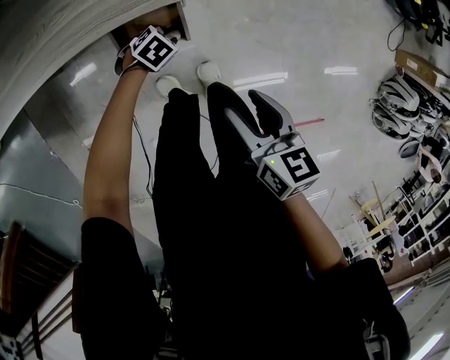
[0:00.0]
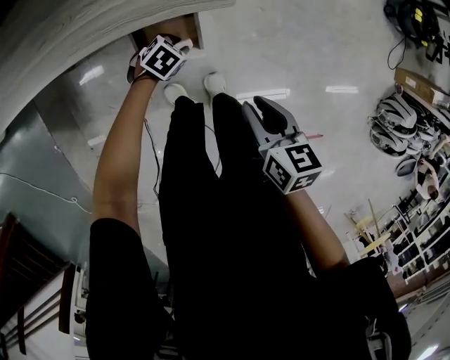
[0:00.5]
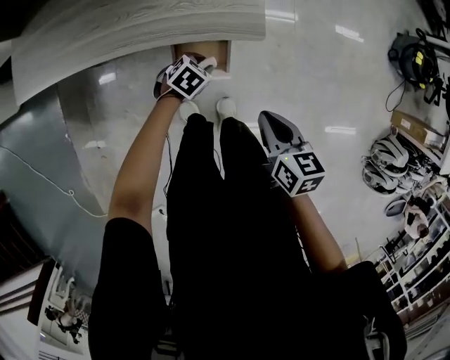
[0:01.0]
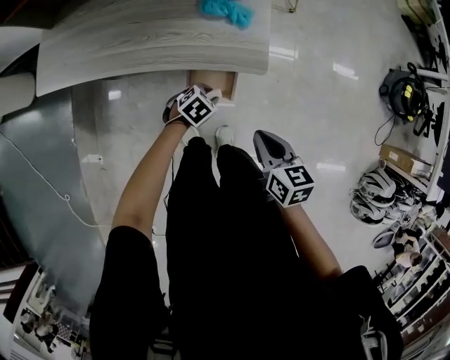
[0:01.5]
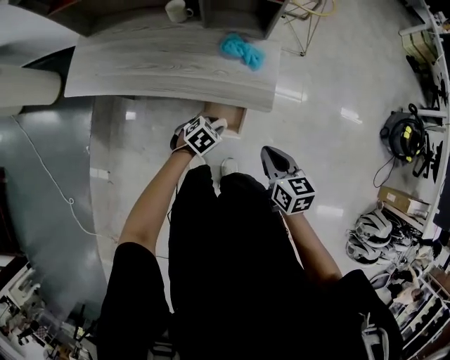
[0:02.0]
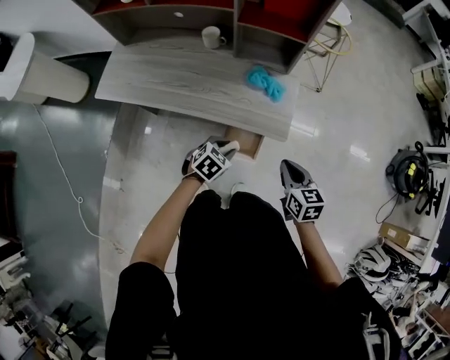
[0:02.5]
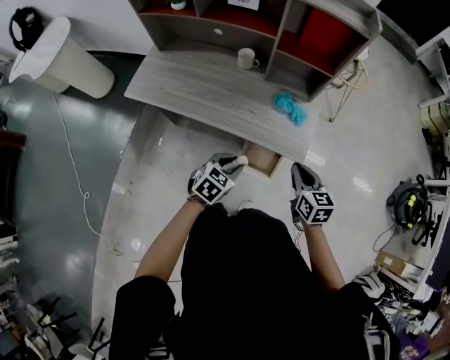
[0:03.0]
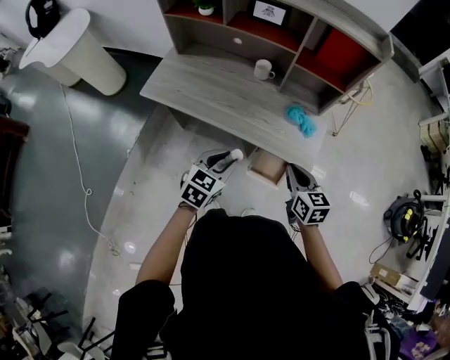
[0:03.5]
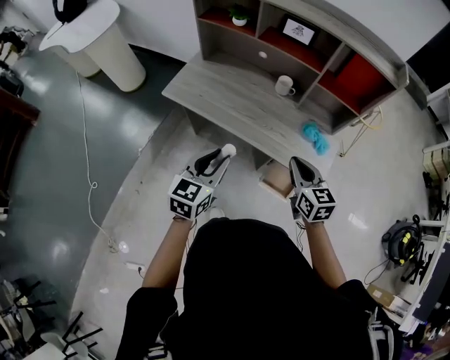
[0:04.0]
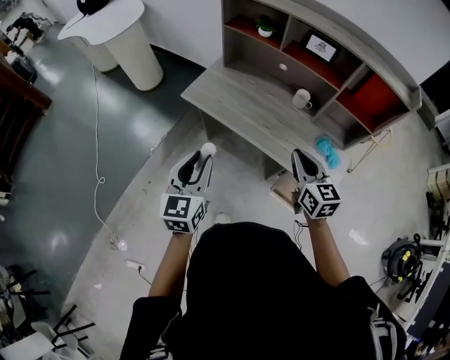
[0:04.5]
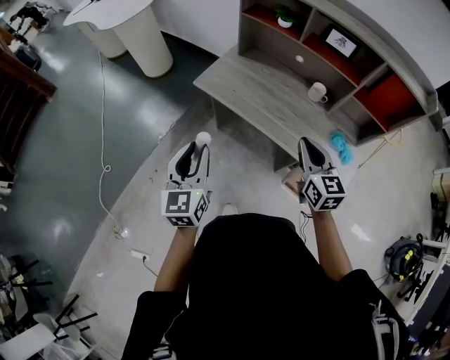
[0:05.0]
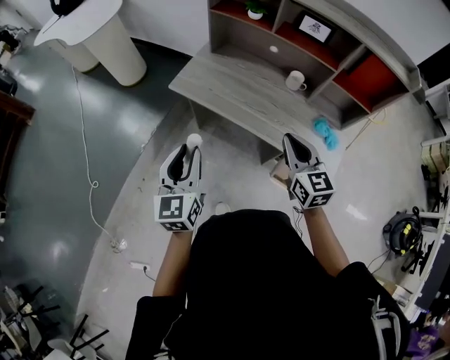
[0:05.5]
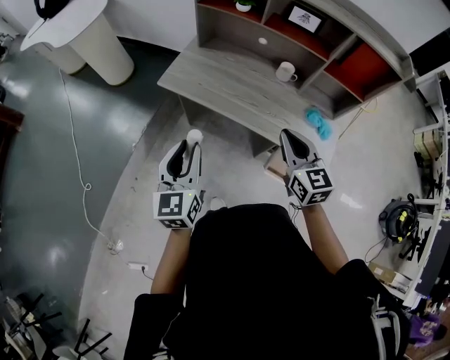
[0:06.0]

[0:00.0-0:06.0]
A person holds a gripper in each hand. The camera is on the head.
0:00.0 to 0:02.0: The right gripper goes roughly 15 cm upward, swivels roughly 20 degrees, and closes. The left gripper goes approximately 25 cm upward, and rotates roughly 20 degrees.
0:02.0 to 0:04.0: The left gripper goes some 35 cm upward, and tips its fingers upward by roughly 40 degrees. Meanwhile the right gripper changes place by approximately 30 cm, and rotates some 30 degrees.
0:04.0 to 0:06.0: The two grippers go approximately 15 cm to the left. The left gripper changes its angle by some 20 degrees.

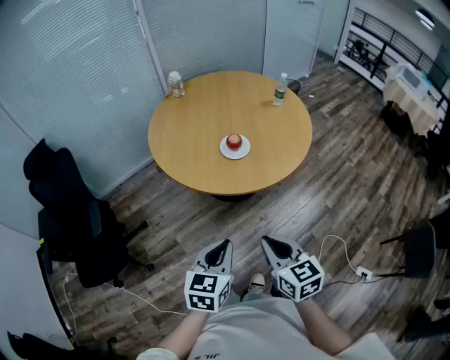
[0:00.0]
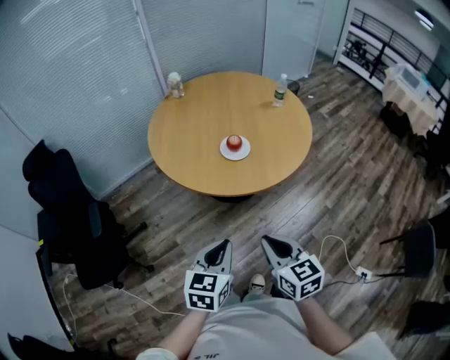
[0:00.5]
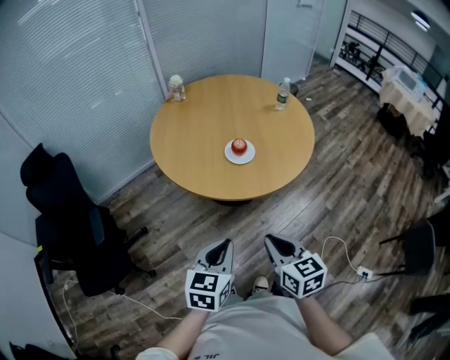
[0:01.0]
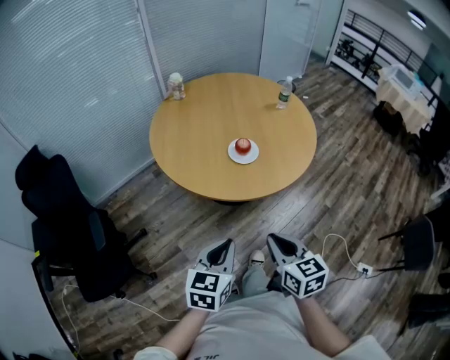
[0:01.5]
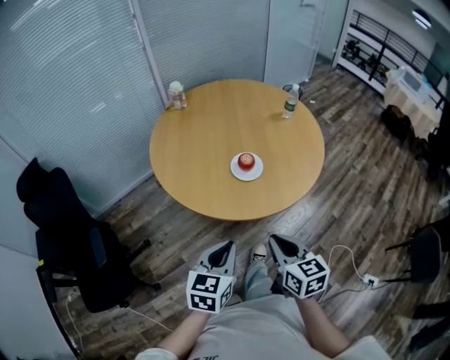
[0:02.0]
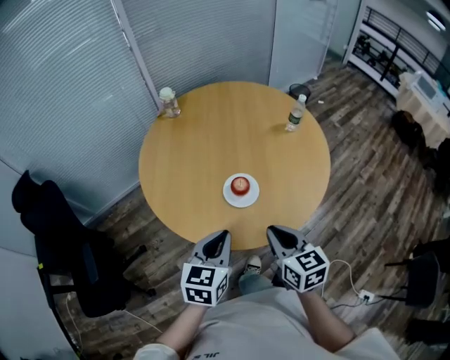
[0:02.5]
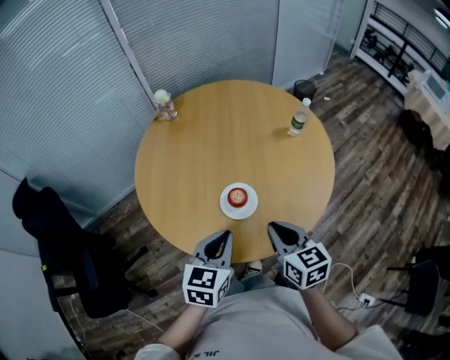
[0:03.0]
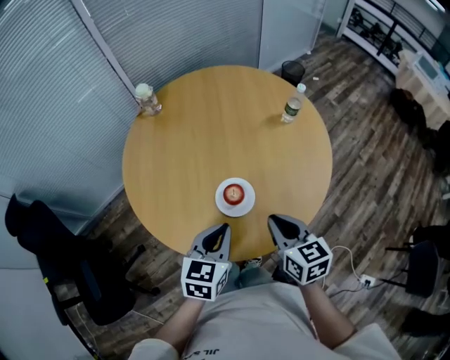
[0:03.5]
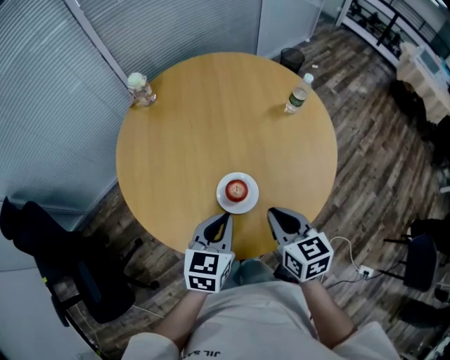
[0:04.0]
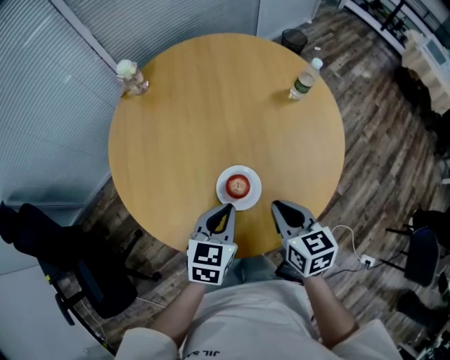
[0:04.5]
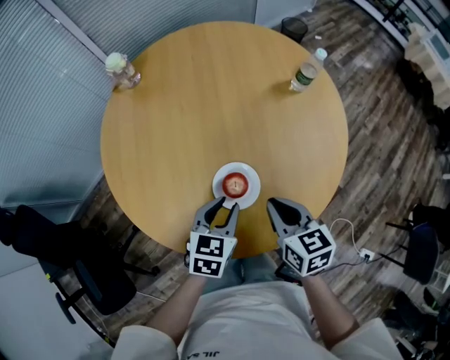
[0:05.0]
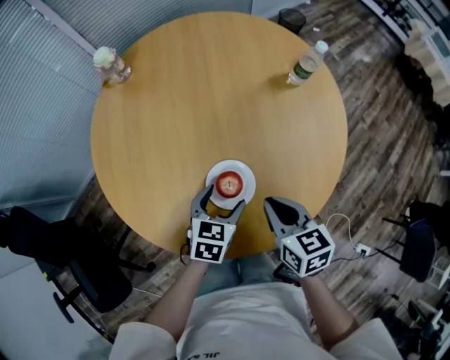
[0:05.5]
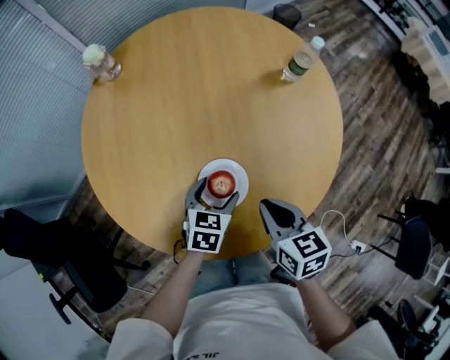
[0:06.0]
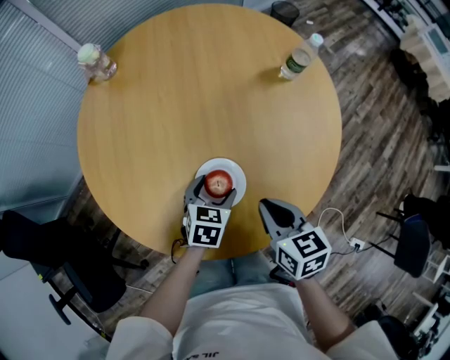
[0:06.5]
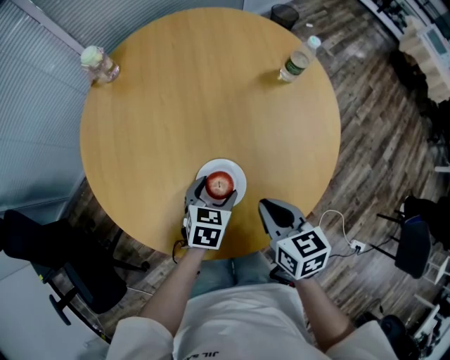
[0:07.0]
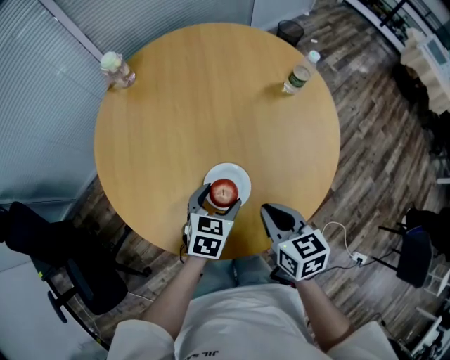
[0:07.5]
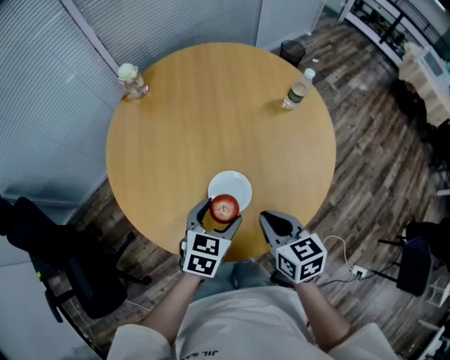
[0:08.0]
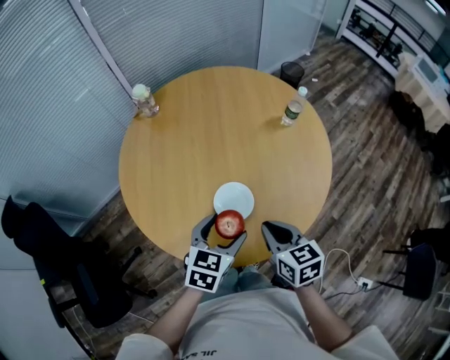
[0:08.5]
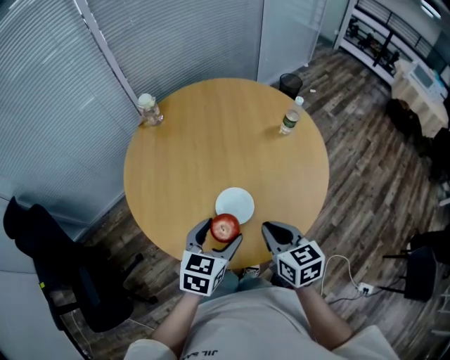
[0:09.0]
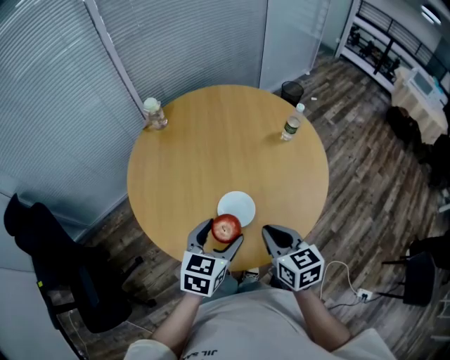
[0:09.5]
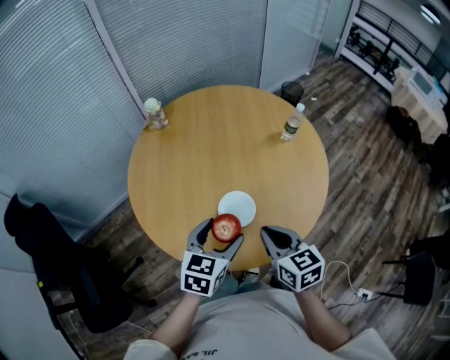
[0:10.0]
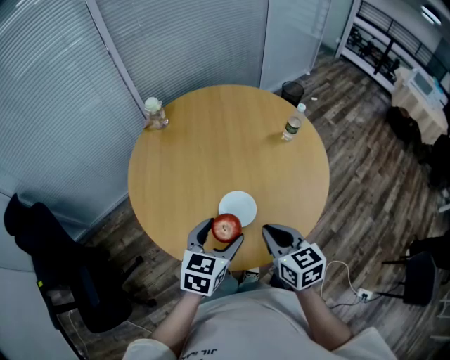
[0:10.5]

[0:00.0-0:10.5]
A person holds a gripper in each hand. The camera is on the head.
0:00.0 to 0:02.0: The right gripper shifts approximately 10 cm forward. The left gripper travels forward and to the left by about 10 cm.
0:02.0 to 0:04.0: The grippers both shift forward by approximately 30 cm.
0:04.0 to 0:06.5: The left gripper shifts approximately 20 cm downward and forward, changes its angle by roughly 20 degrees, and opens up, while the right gripper heads downward, covering some 10 cm.
0:06.5 to 0:08.5: The right gripper is displaced upward and backward by about 10 cm. Meanwhile the left gripper shifts roughly 20 cm upward and backward.
0:08.5 to 0:10.5: The left gripper moves some 5 cm; the right gripper changes place by some 5 cm.

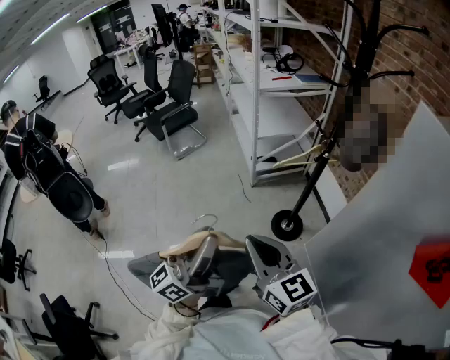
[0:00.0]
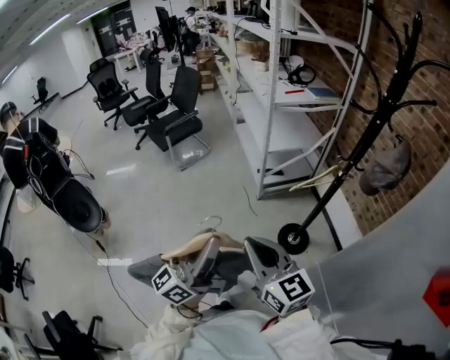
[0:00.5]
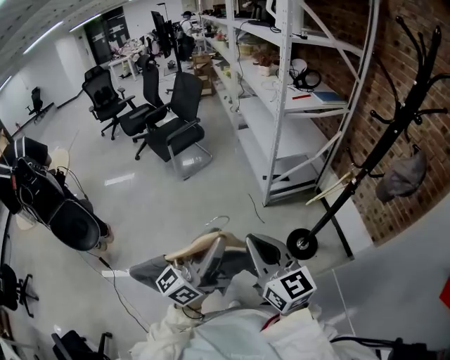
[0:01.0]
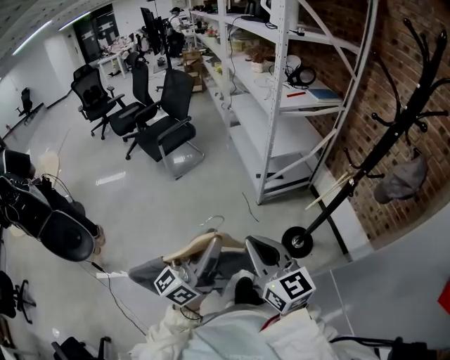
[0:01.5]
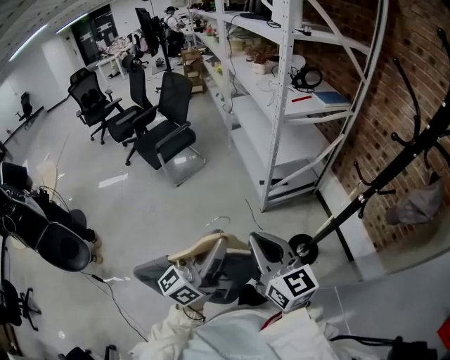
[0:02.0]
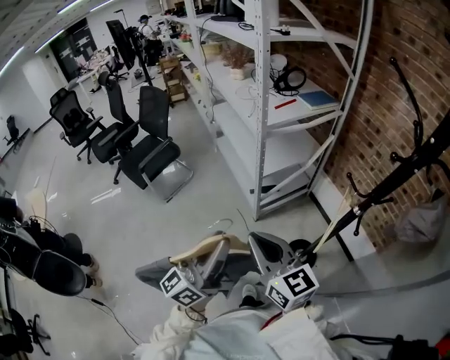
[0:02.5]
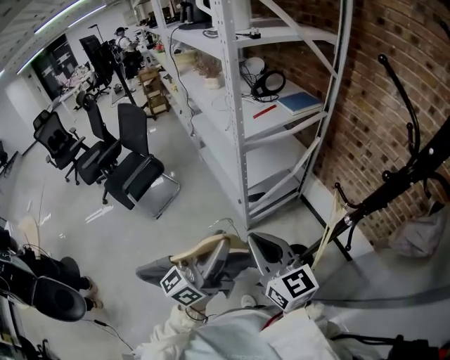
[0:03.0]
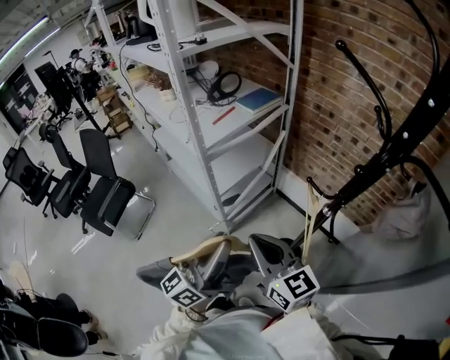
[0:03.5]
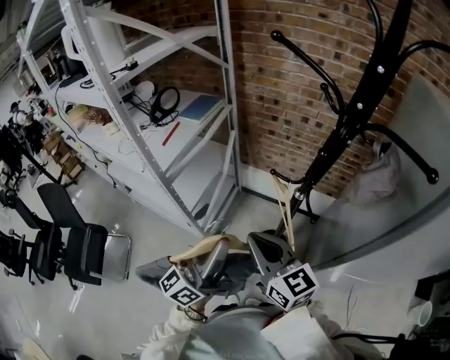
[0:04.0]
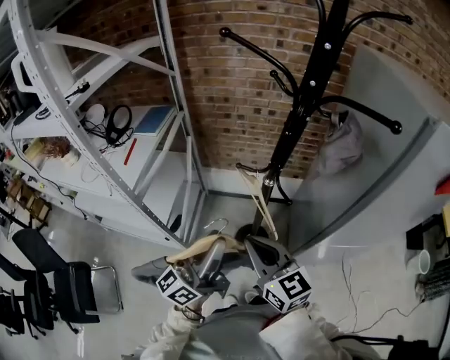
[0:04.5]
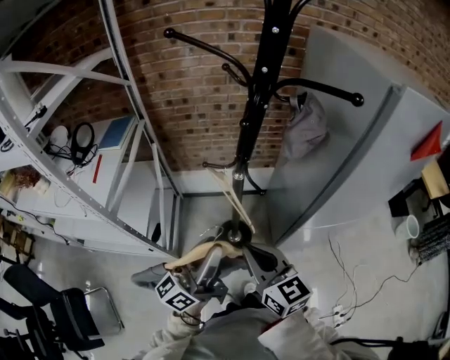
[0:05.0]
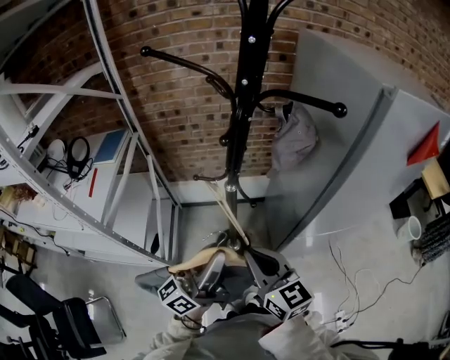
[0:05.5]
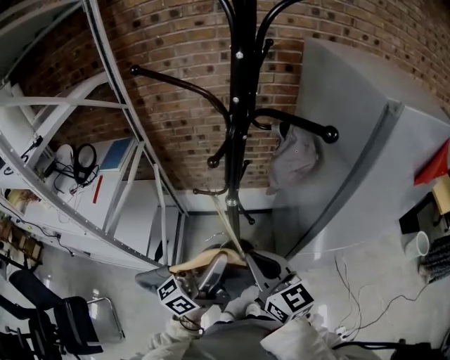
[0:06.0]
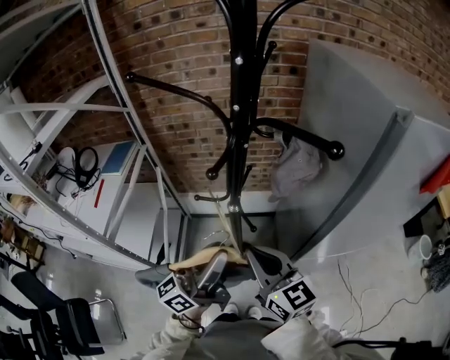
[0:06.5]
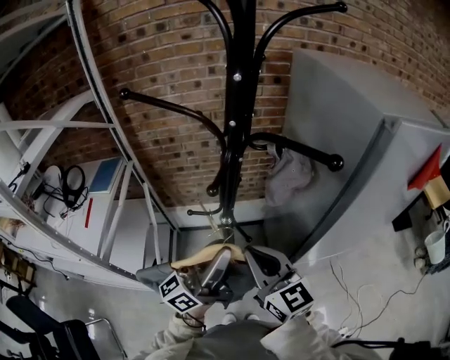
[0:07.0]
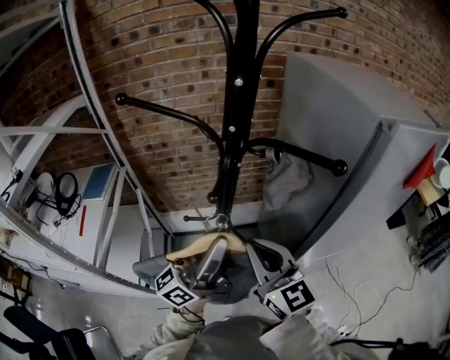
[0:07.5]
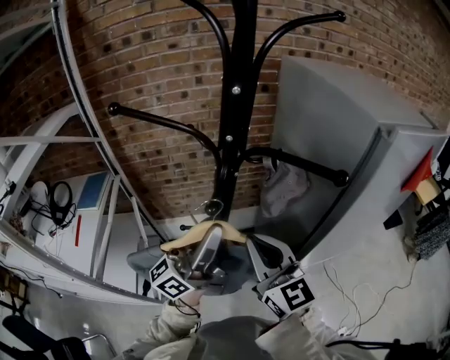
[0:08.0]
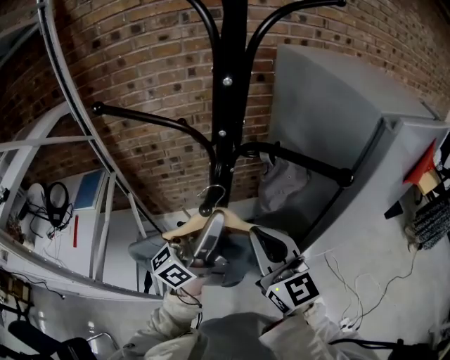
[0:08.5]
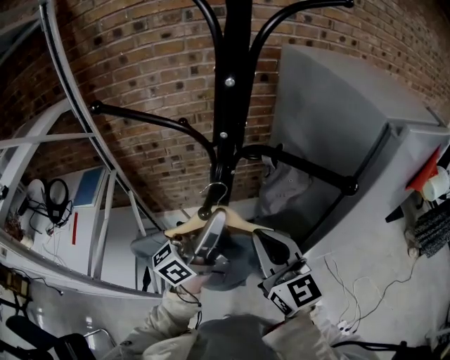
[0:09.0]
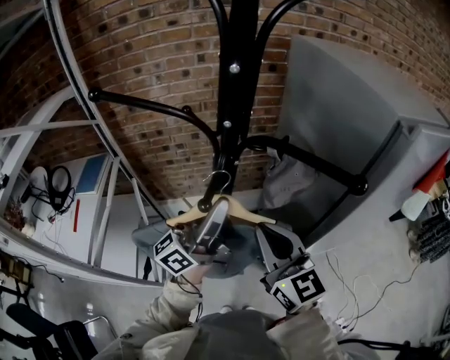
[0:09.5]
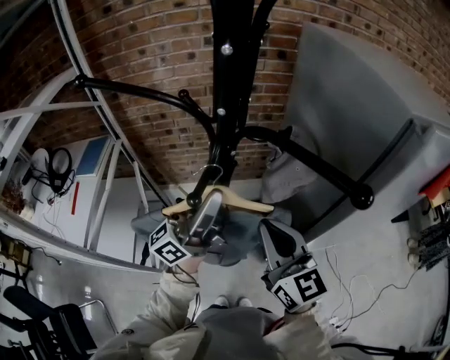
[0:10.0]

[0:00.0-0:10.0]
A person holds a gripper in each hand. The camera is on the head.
0:00.0 to 0:02.0: The grippers both shift forward and to the left by approximately 35 cm.
0:02.0 to 0:04.0: The left gripper moves roughly 35 cm, and turns by approximately 50 degrees, while the right gripper changes place by about 30 cm, and rotates approximately 40 degrees.
0:04.0 to 0:06.0: The left gripper moves some 15 cm, and swivels roughly 30 degrees; the right gripper moves approximately 15 cm, and changes its angle by roughly 30 degrees.
0:06.0 to 0:08.0: The two grippers go approximately 15 cm forward and upward. The right gripper turns by about 20 degrees.
0:08.0 to 0:10.0: The right gripper changes place by some 5 cm; the left gripper heads forward, covering some 5 cm.
